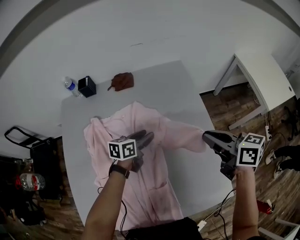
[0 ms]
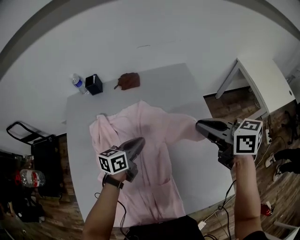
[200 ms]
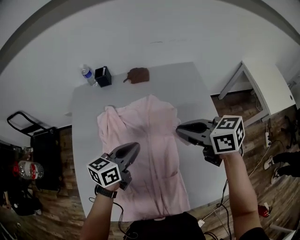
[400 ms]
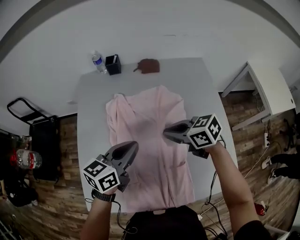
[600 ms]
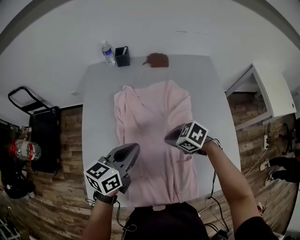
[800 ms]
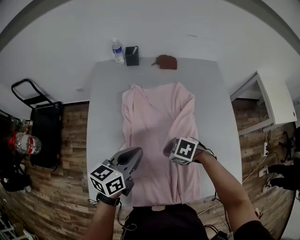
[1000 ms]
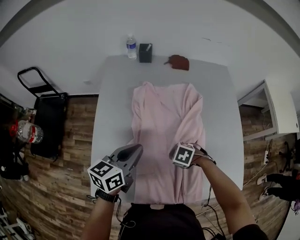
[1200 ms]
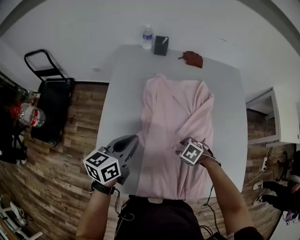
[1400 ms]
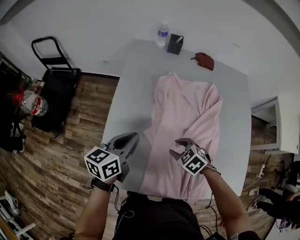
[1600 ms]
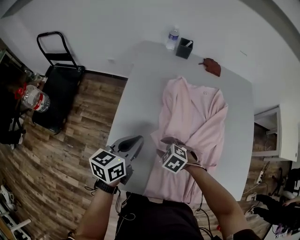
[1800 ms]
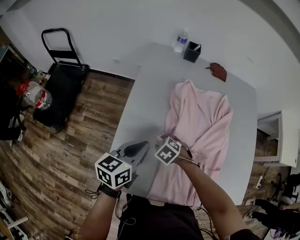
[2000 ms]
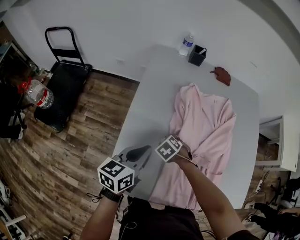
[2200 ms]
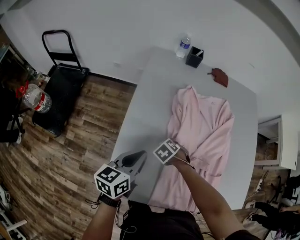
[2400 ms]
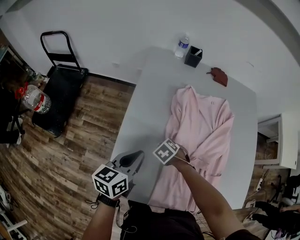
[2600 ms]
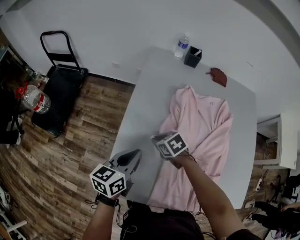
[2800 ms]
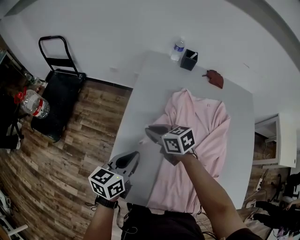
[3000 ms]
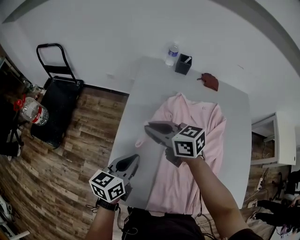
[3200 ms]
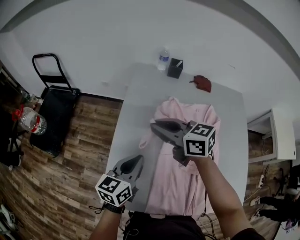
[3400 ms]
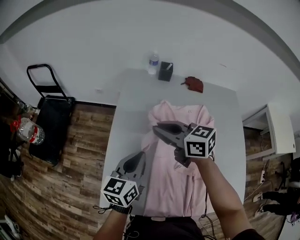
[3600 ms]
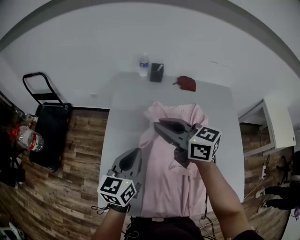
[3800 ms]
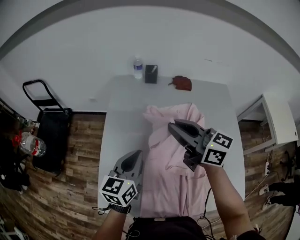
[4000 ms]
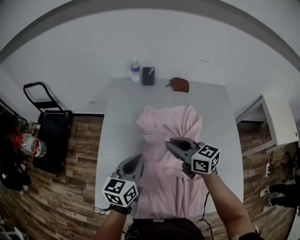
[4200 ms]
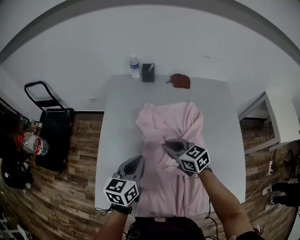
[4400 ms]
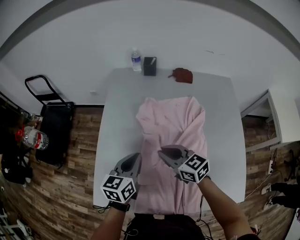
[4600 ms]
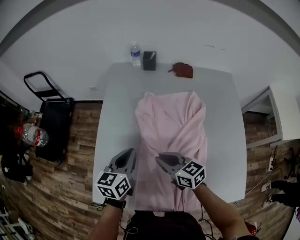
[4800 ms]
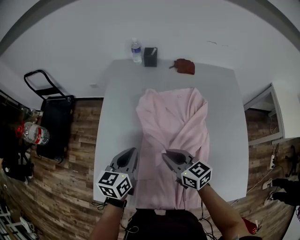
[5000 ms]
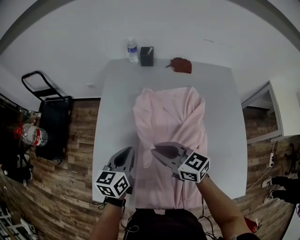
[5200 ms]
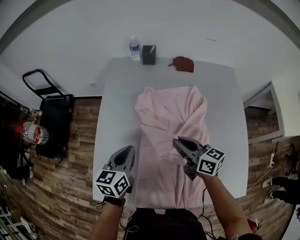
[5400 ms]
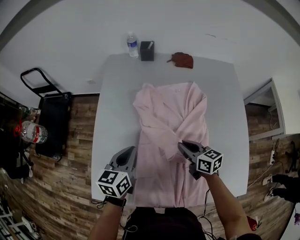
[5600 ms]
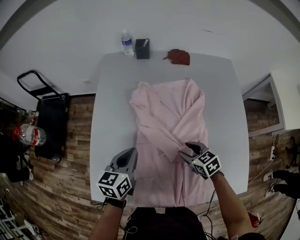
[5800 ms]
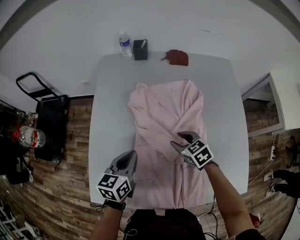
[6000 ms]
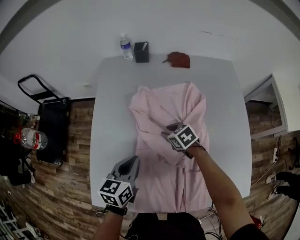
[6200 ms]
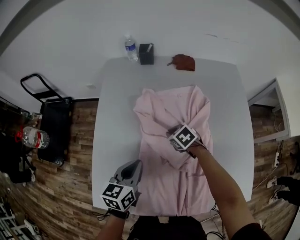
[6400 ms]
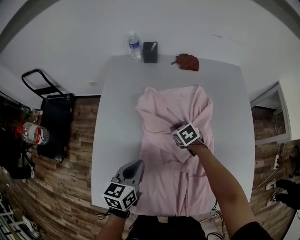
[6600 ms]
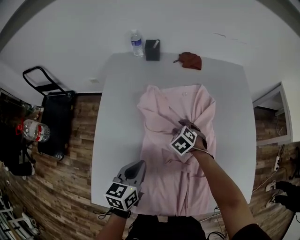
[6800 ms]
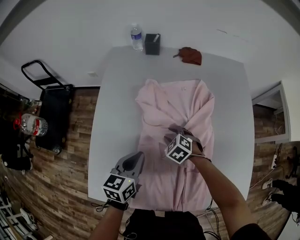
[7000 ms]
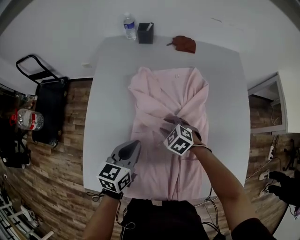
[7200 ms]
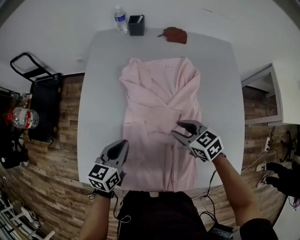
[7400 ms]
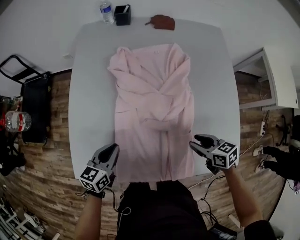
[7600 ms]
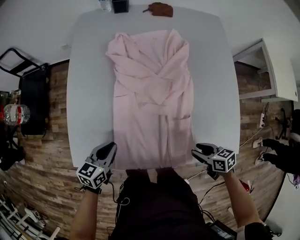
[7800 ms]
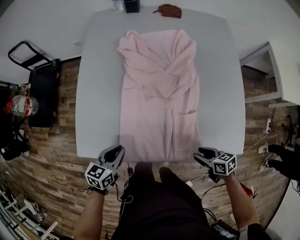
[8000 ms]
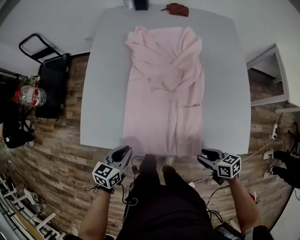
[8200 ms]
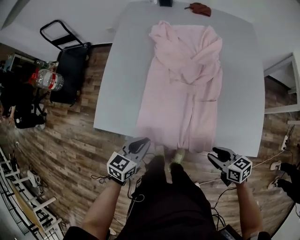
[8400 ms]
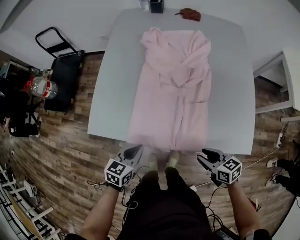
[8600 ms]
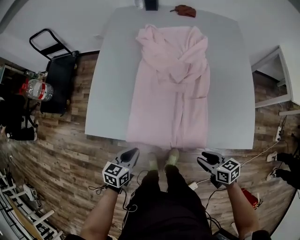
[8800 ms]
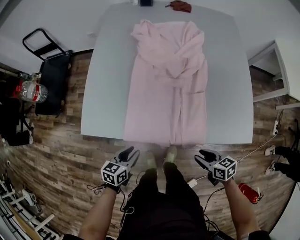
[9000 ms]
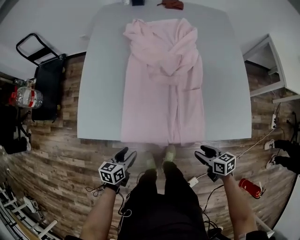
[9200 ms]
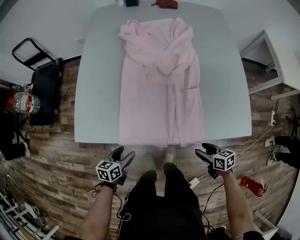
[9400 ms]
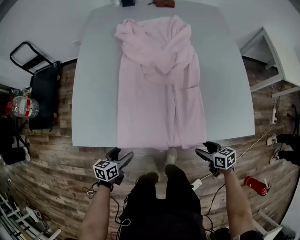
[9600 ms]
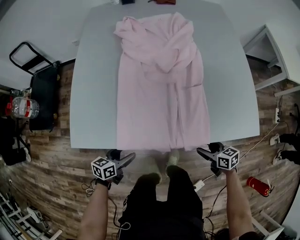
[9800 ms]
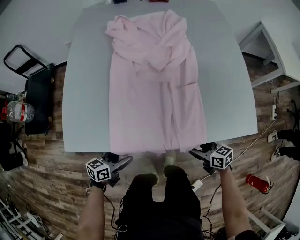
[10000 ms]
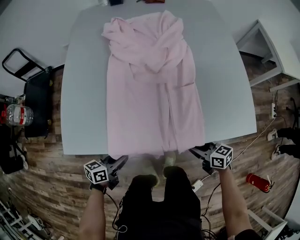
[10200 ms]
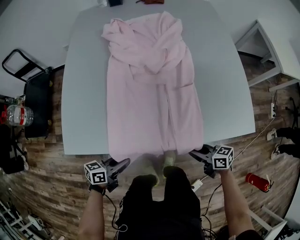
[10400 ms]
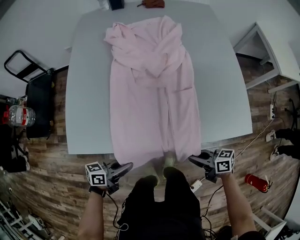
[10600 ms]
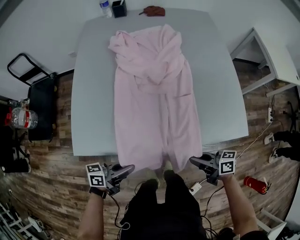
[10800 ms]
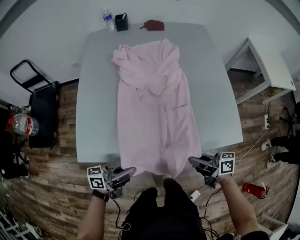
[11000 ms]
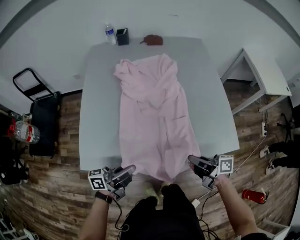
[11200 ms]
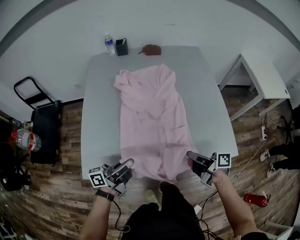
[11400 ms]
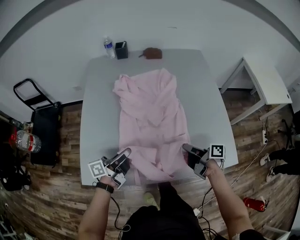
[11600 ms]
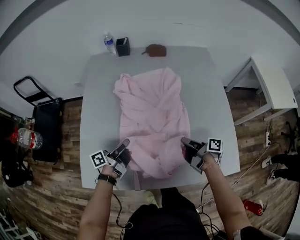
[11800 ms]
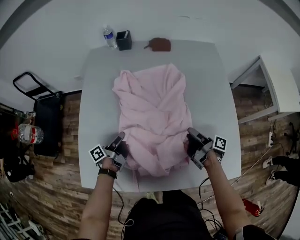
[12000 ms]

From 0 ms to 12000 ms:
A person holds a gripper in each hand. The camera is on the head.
From 0 ms to 1600 ms: Both grippers are carried approximately 40 cm. The left gripper rotates approximately 30 degrees, and closes its fingers. The right gripper tips its fingers downward by approximately 40 degrees, and opens.
From 1600 ms to 3000 ms: The right gripper reaches approximately 10 cm downward, then returns, changes its angle by about 40 degrees, and closes its fingers, while the left gripper ends up some 5 cm from where it was.
From 3000 ms to 4400 ms: The grippers both shift to the right by some 20 cm. The right gripper reaches approximately 25 cm upward, then returns.
From 4400 ms to 6000 ms: The left gripper moves downward, roughly 5 cm, while the right gripper heads downward and to the right, covering some 15 cm, rotates some 20 degrees, and opens up.
From 6000 ms to 7600 ms: The right gripper is displaced backward and to the right by approximately 20 cm, changes its angle by roughly 20 degrees, and closes and opens again. The left gripper shifts some 10 cm backward and downward.
From 7600 ms to 9000 ms: The left gripper heads backward and downward, covering approximately 25 cm. The right gripper is displaced backward by about 25 cm.
From 9000 ms to 10400 ms: Both grippers move downward, about 5 cm. The right gripper closes; the left gripper swivels approximately 30 degrees, and opens, then closes once more.
From 10400 ms to 12000 ms: The right gripper changes place by about 35 cm, rotates around the line of its fingers by about 50 degrees, clockwise from behind, and opens its fingers, while the left gripper changes place by approximately 35 cm, and changes its angle by some 50 degrees.

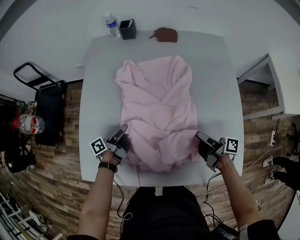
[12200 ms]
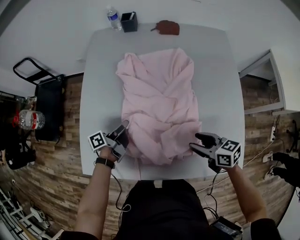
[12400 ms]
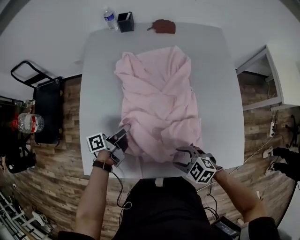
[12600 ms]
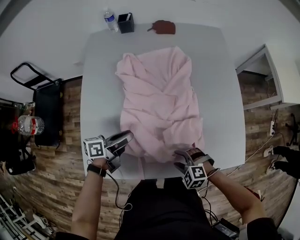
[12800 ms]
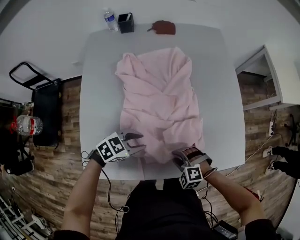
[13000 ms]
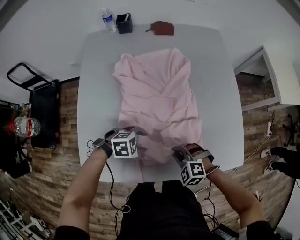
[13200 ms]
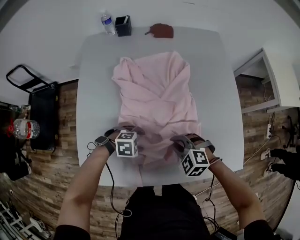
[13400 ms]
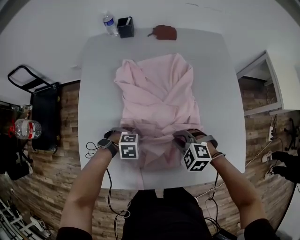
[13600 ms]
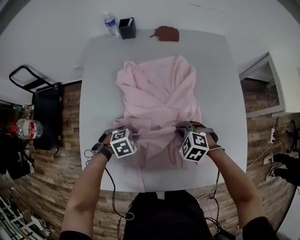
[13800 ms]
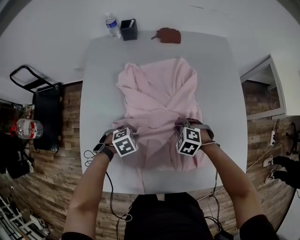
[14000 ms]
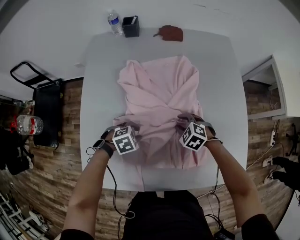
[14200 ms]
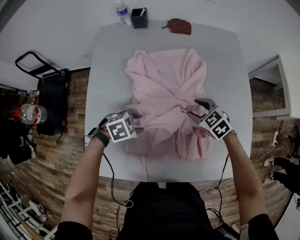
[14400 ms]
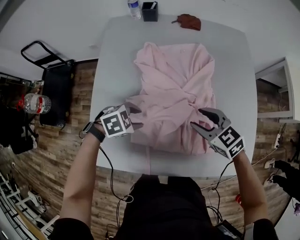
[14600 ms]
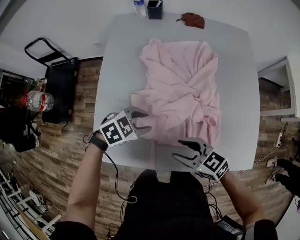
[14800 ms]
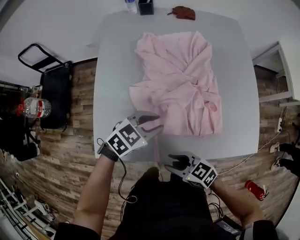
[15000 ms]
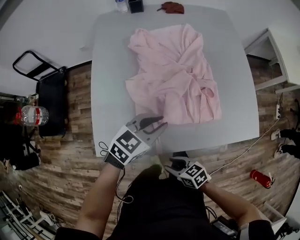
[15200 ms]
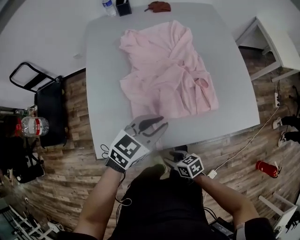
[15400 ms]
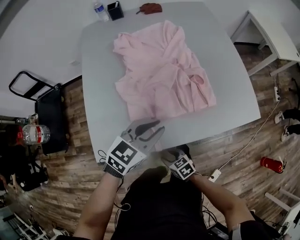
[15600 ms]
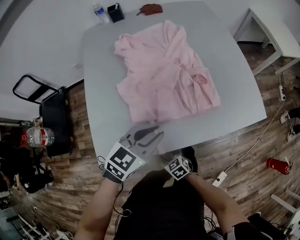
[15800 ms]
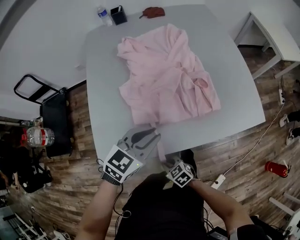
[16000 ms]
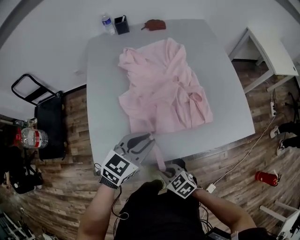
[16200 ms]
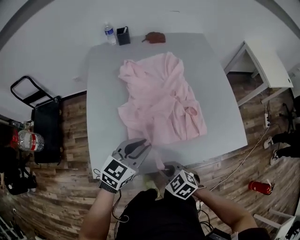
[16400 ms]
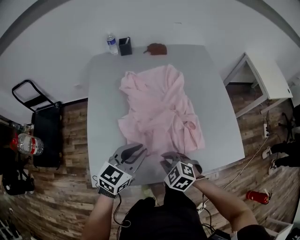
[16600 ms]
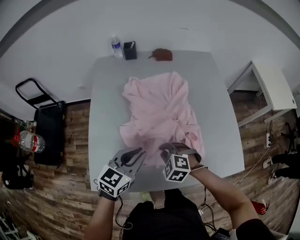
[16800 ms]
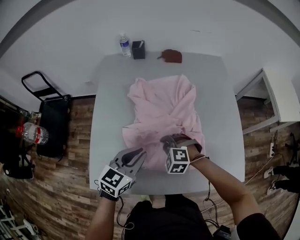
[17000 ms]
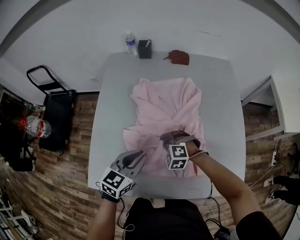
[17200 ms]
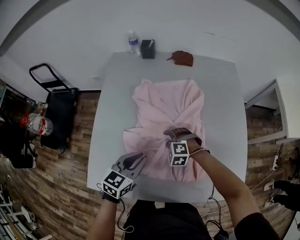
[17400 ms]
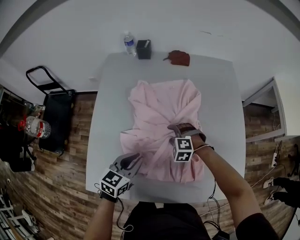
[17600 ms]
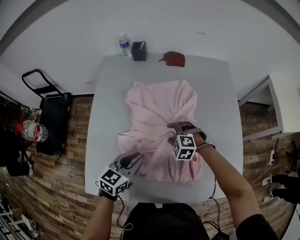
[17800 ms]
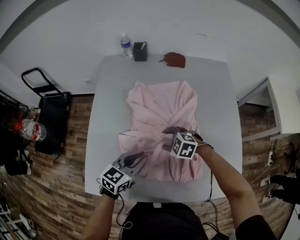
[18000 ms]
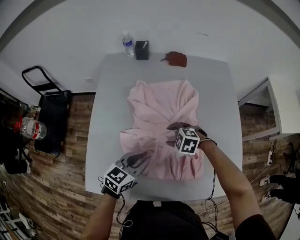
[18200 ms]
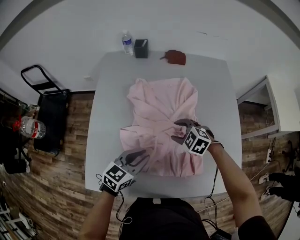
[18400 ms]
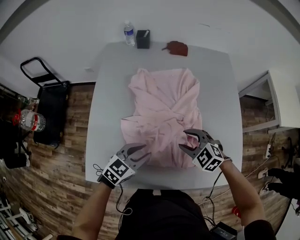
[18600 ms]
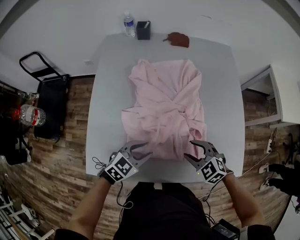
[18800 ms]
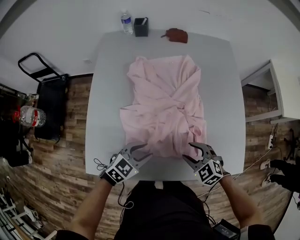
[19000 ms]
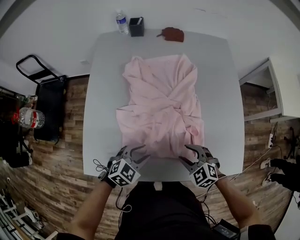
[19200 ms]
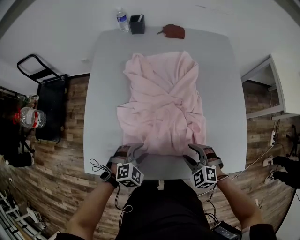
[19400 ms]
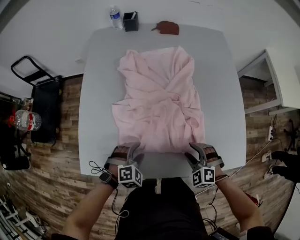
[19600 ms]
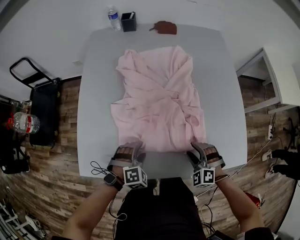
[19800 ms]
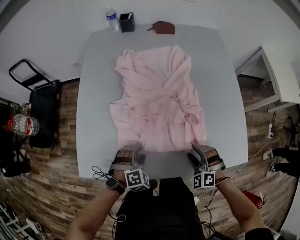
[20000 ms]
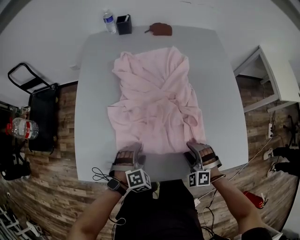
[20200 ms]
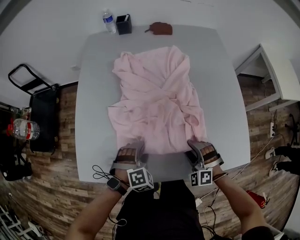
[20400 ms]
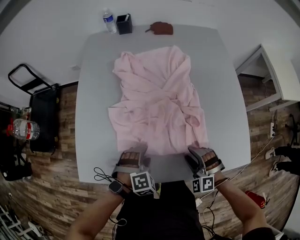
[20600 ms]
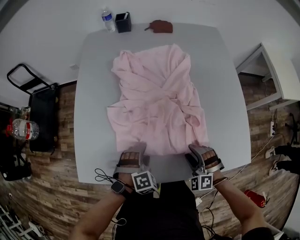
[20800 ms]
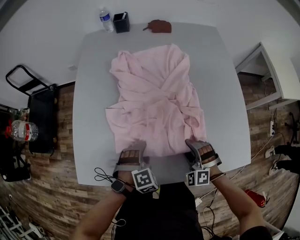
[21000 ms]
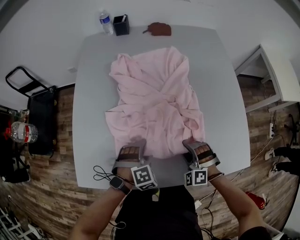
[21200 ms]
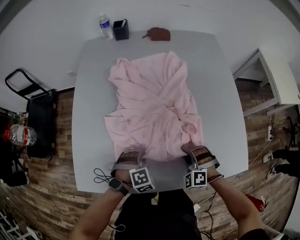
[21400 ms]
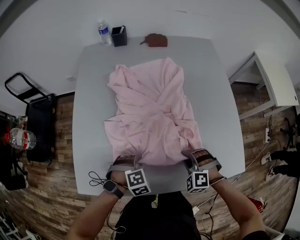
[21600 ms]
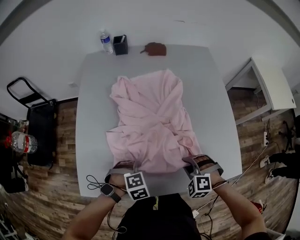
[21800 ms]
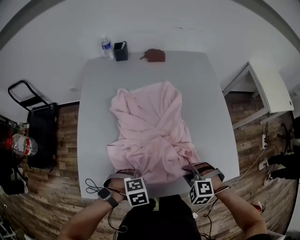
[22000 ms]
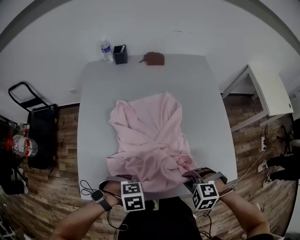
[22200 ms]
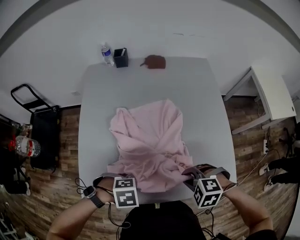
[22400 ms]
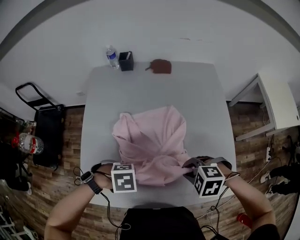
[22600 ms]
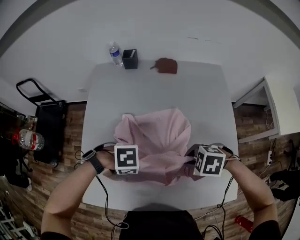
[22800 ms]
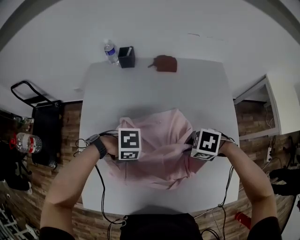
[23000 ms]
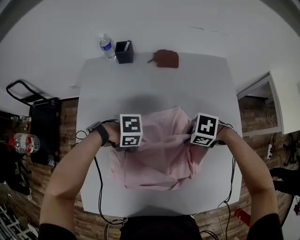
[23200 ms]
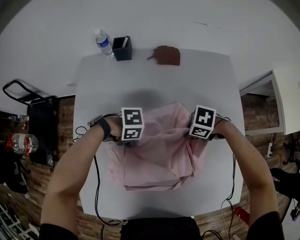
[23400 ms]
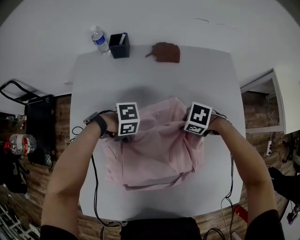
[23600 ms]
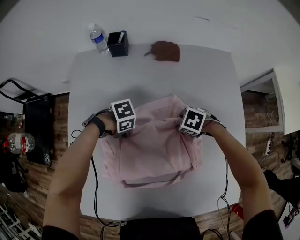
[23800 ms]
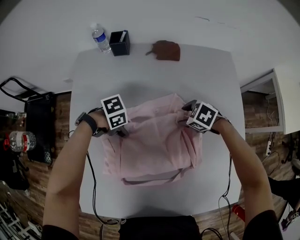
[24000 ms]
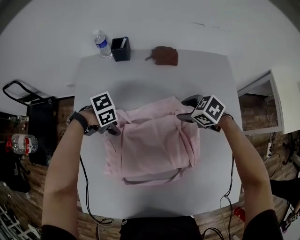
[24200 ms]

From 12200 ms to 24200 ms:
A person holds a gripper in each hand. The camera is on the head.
From 12200 ms to 13800 ms: The right gripper twists some 100 degrees counterclockwise, seen from behind, and closes its fingers; the left gripper reaches roughly 5 cm upward, then returns, tilts its fingers roughly 60 degrees downward, and opens and closes again.
From 13800 ms to 15200 ms: The left gripper is displaced upward by approximately 15 cm, angles its fingers upward, by roughly 40 degrees, and opens and closes again; the right gripper goes up and down, roughly 15 cm each way, reversing 2 times, twists some 60 degrees clockwise, seen from behind, and opens up.
From 15200 ms to 16600 ms: The left gripper ends up about 5 cm from where it was, while the right gripper ends up approximately 20 cm from where it was, rolls counterclockwise, seen from behind, by about 40 degrees, and closes its fingers.
From 16600 ms to 18200 ms: The right gripper travels forward by approximately 20 cm, changes its angle by roughly 30 degrees, and opens up, while the left gripper shifts some 10 cm forward and downward.
From 18200 ms to 19800 ms: The left gripper moves downward and backward, some 20 cm, twists some 60 degrees clockwise, seen from behind, and opens its fingers. Meanwhile the right gripper heads backward and to the right, covering some 25 cm, and rotates about 30 degrees.
From 19800 ms to 21200 ms: The right gripper moves some 5 cm.
From 21200 ms to 22600 ms: The two grippers go some 15 cm upward. The left gripper turns by roughly 50 degrees, and closes its fingers. The right gripper changes its angle by roughly 40 degrees, and closes its fingers.
From 22600 ms to 24200 ms: The left gripper moves approximately 30 cm, swivels about 30 degrees, and opens. Meanwhile the right gripper ends up approximately 35 cm from where it was, rotates about 30 degrees, and opens its fingers.
